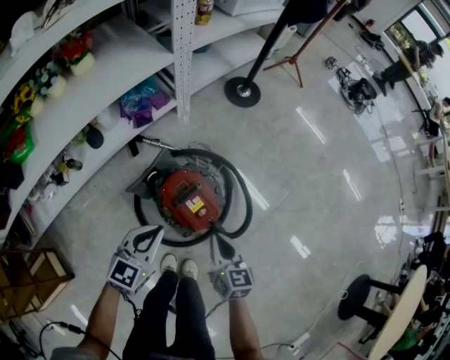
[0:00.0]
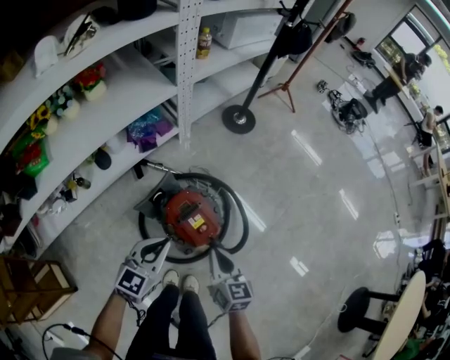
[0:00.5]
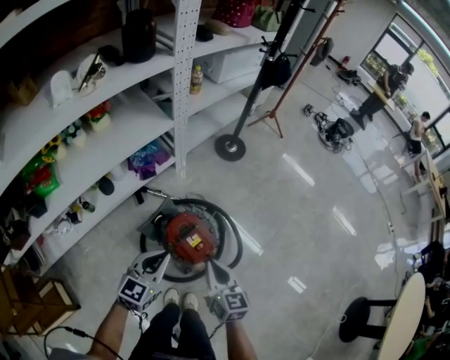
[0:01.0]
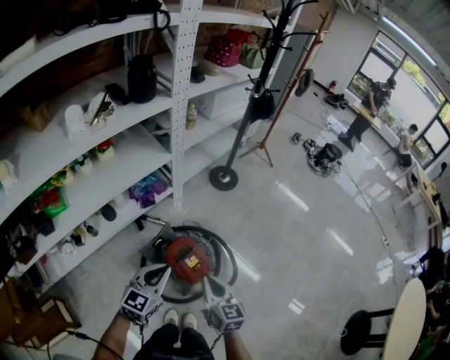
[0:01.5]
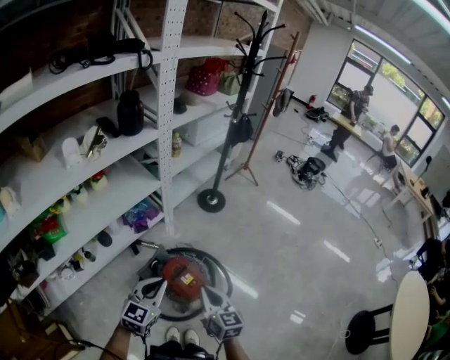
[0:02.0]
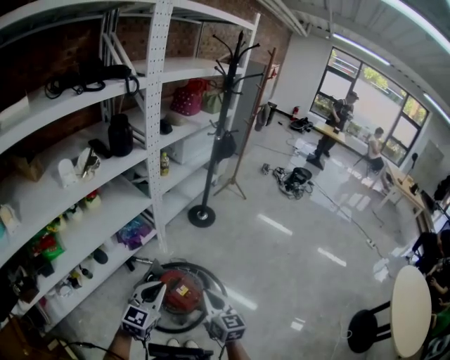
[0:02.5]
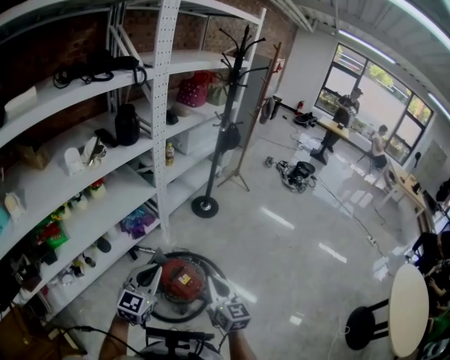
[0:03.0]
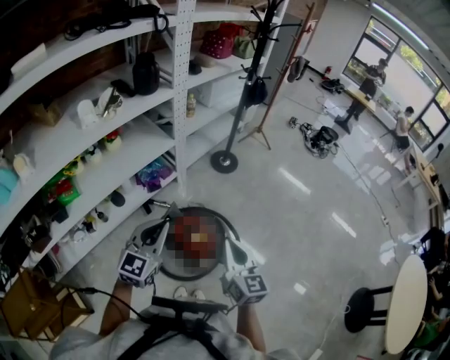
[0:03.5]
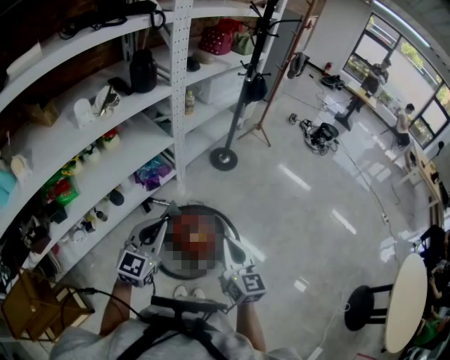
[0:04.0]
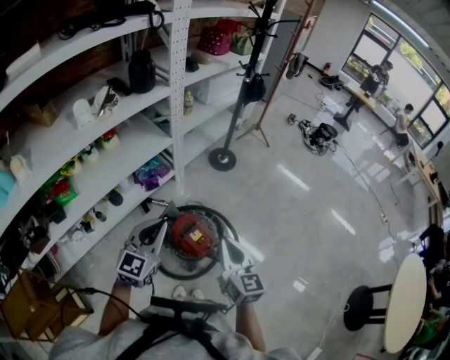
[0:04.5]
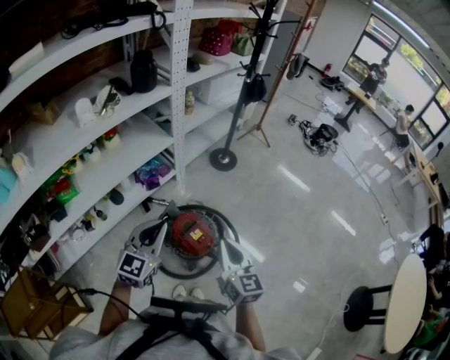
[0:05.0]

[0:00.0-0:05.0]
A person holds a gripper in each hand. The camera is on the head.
0:00.0 to 0:02.5: The two grippers go about 30 cm upward.
0:02.5 to 0:05.0: The left gripper shifts by roughly 5 cm.

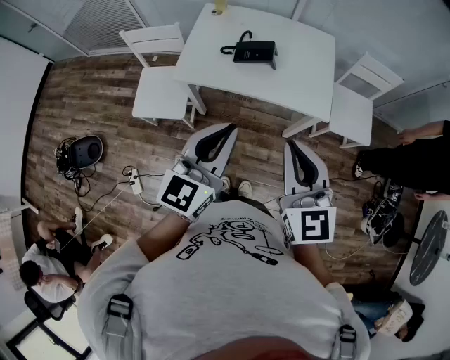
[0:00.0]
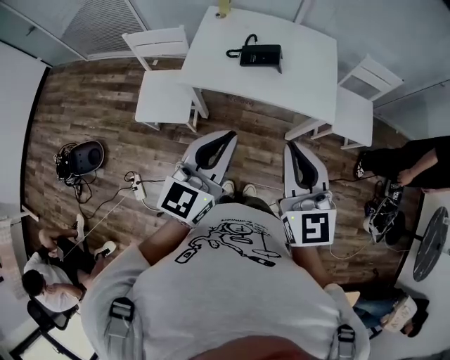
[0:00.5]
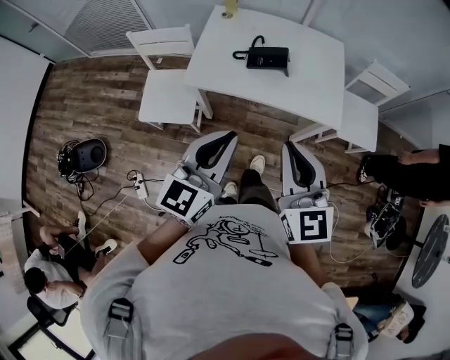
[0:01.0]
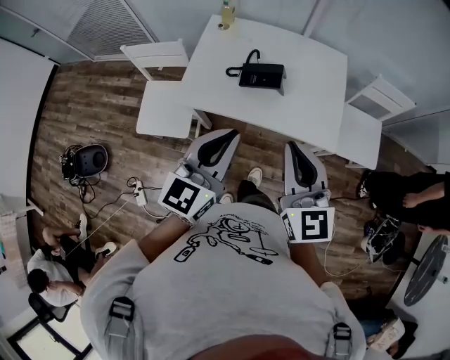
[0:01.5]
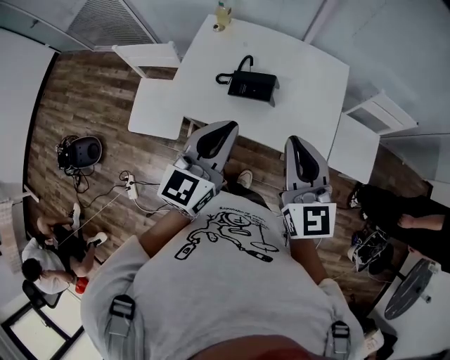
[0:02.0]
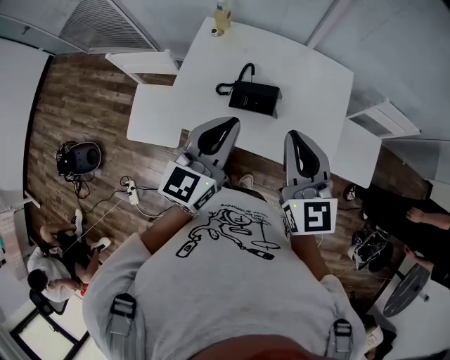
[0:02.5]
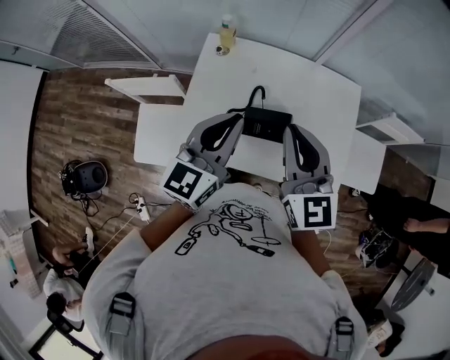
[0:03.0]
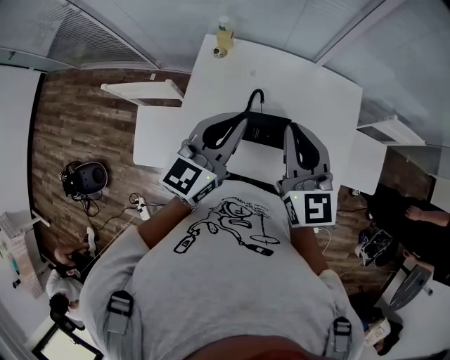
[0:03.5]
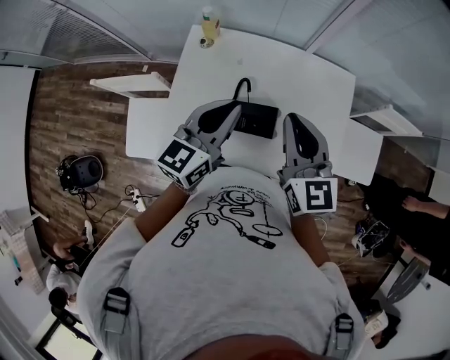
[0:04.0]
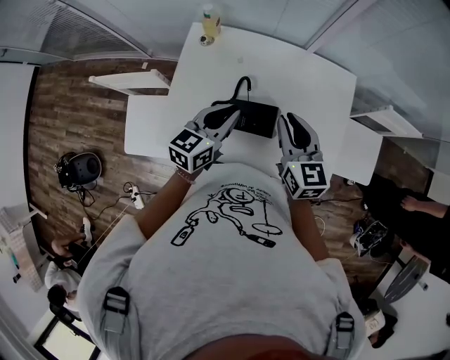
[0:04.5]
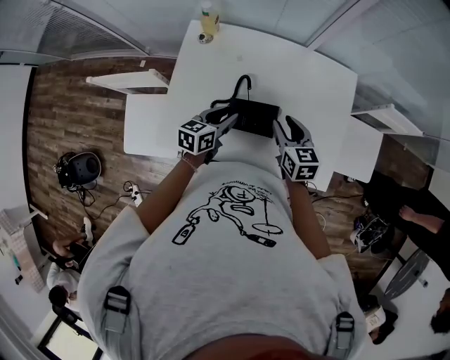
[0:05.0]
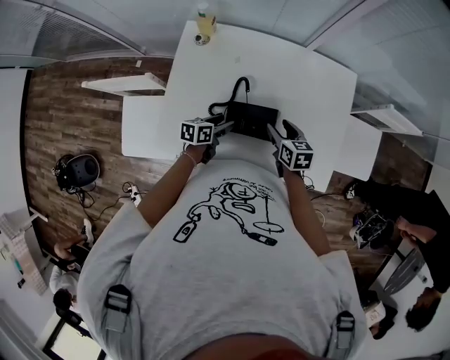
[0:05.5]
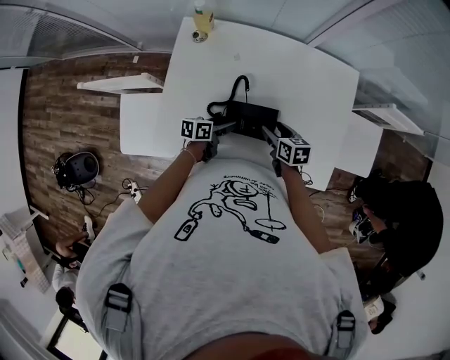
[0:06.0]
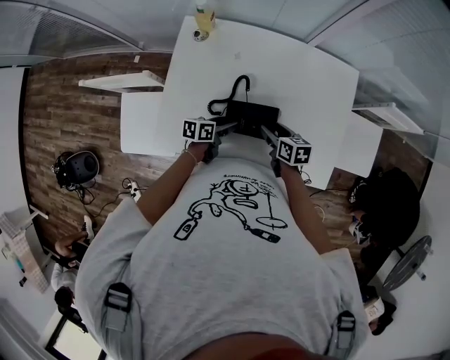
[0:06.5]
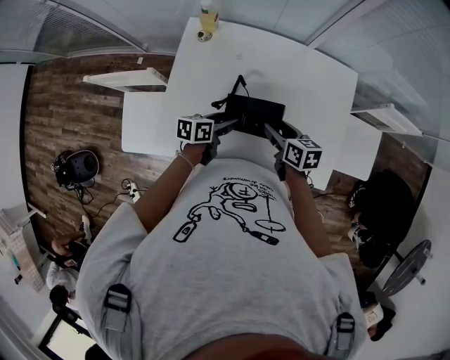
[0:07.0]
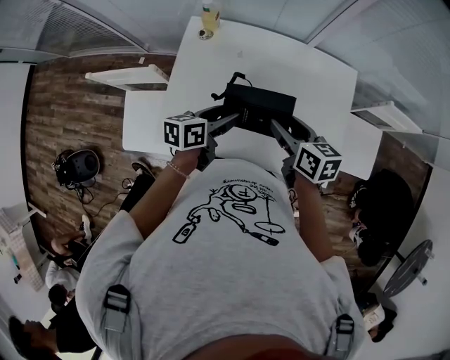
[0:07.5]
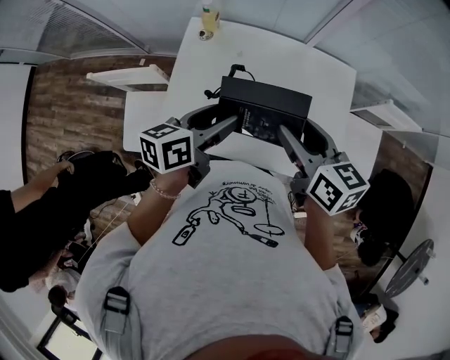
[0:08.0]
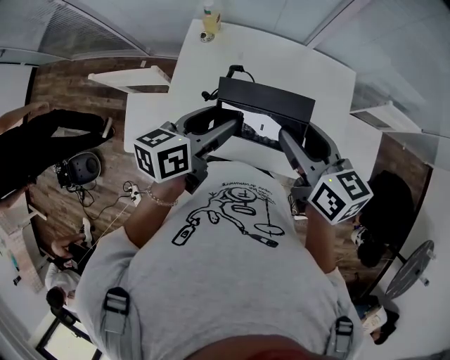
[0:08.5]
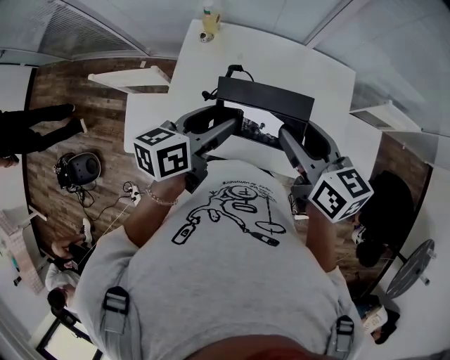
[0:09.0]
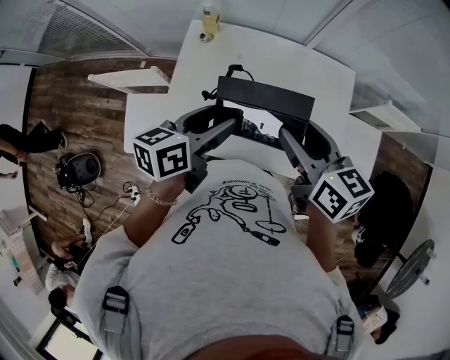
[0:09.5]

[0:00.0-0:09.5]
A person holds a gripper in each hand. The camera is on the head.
0:00.0 to 0:02.0: The grippers both shift forward by about 25 cm.
0:02.0 to 0:04.0: The two grippers go roughly 25 cm forward.
0:04.0 to 0:05.5: The two grippers go roughly 35 cm downward. The left gripper rotates roughly 50 degrees, and opens, while the right gripper tilts its fingers about 30 degrees downward, and opens.
0:05.5 to 0:07.5: Both grippers move upward, roughly 15 cm.
0:07.5 to 0:09.5: Both grippers move upward, about 15 cm.

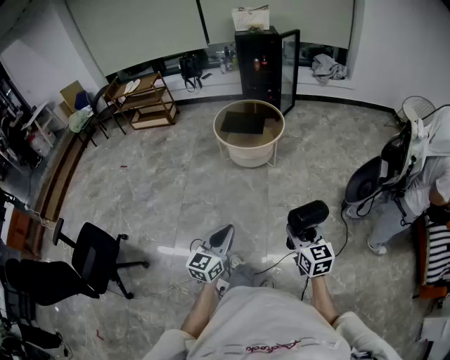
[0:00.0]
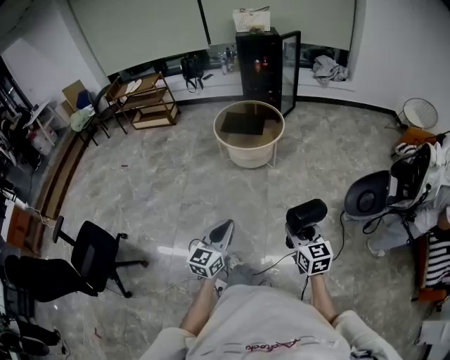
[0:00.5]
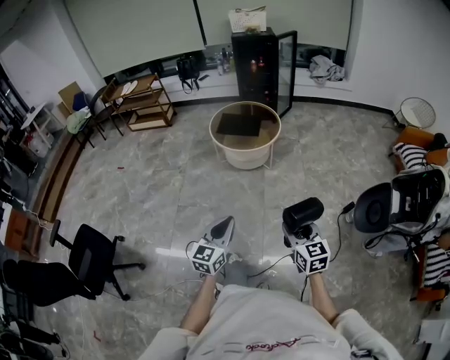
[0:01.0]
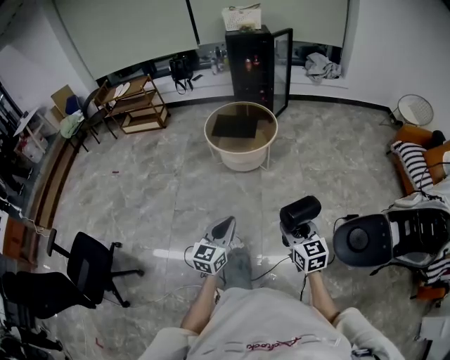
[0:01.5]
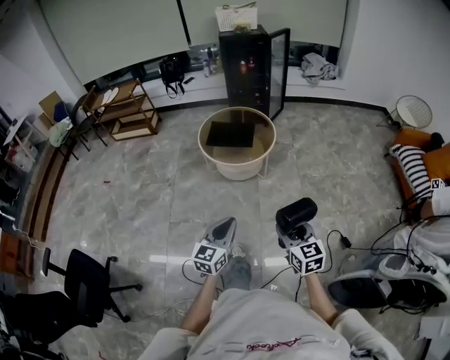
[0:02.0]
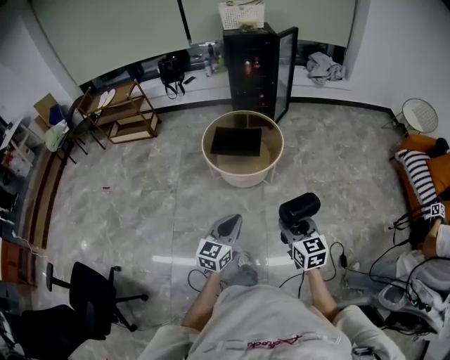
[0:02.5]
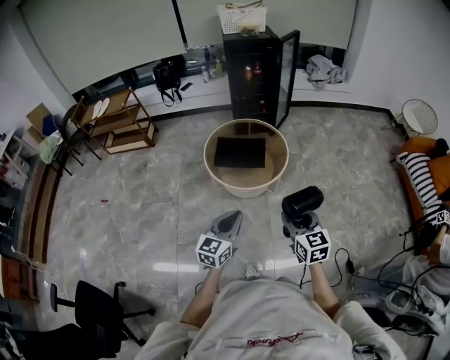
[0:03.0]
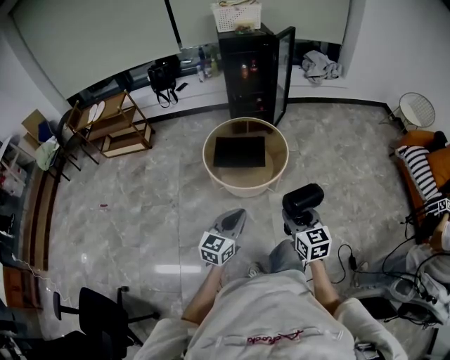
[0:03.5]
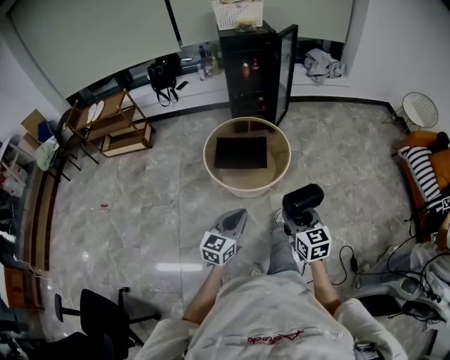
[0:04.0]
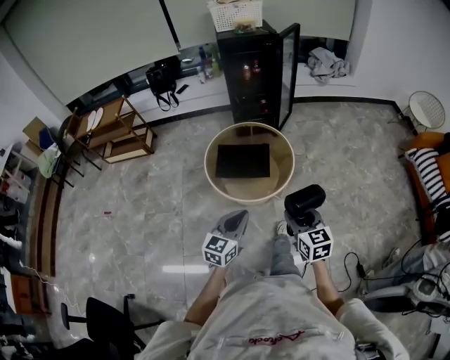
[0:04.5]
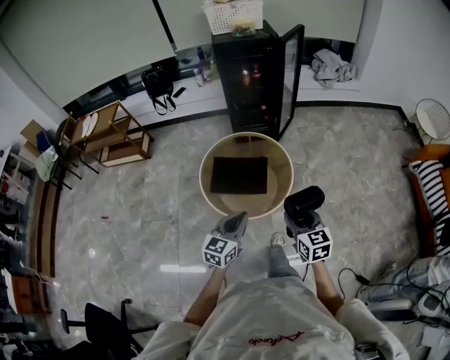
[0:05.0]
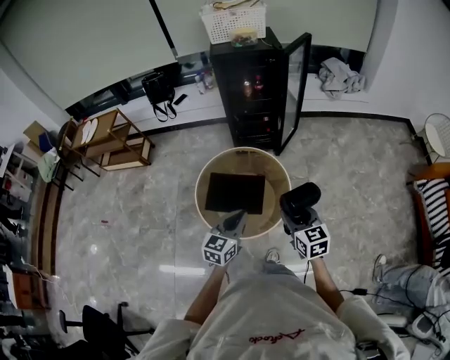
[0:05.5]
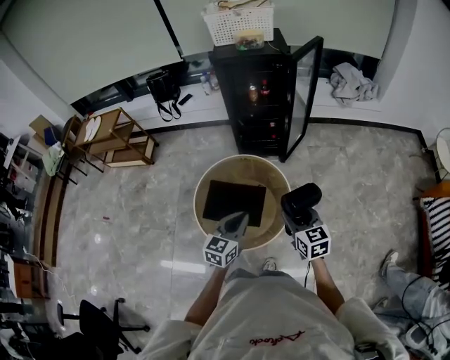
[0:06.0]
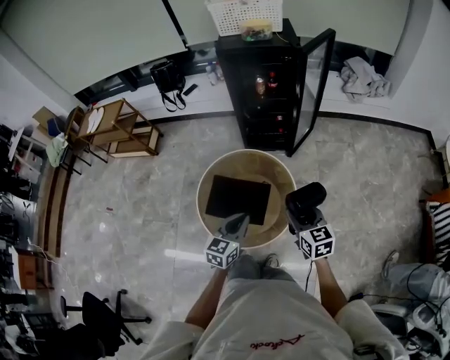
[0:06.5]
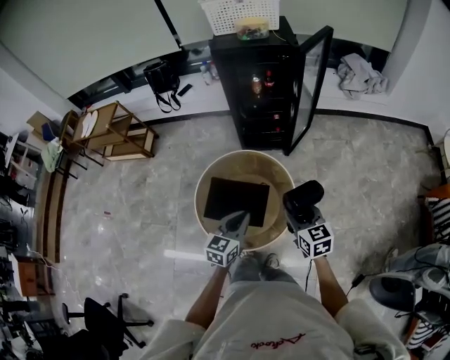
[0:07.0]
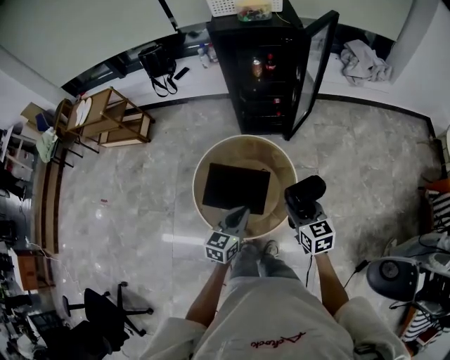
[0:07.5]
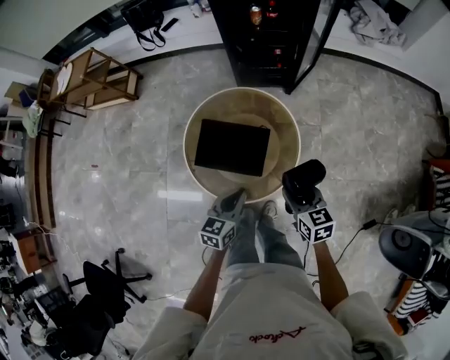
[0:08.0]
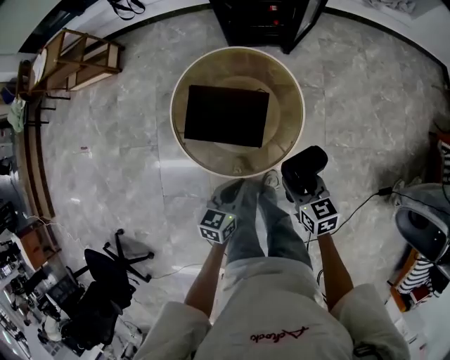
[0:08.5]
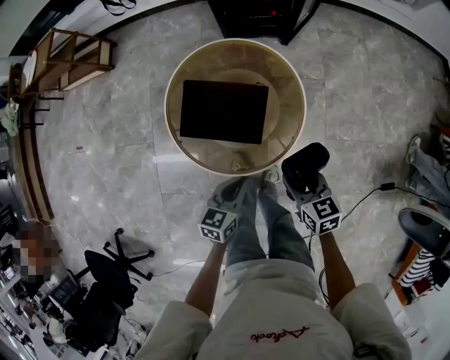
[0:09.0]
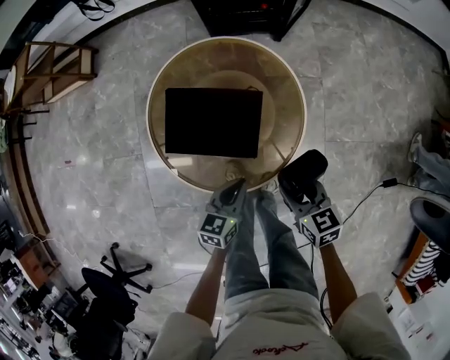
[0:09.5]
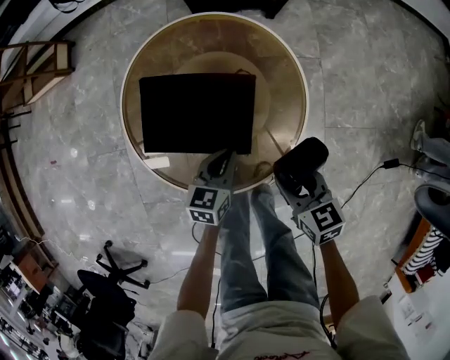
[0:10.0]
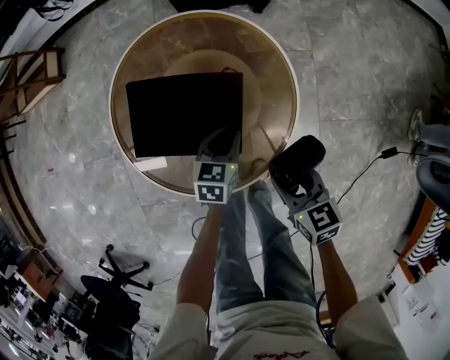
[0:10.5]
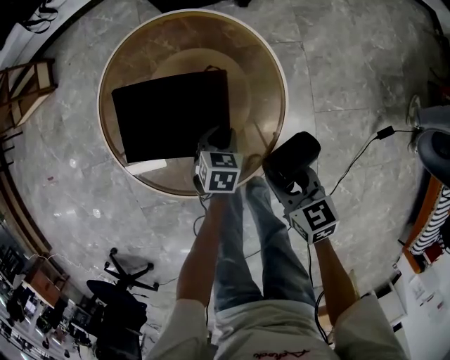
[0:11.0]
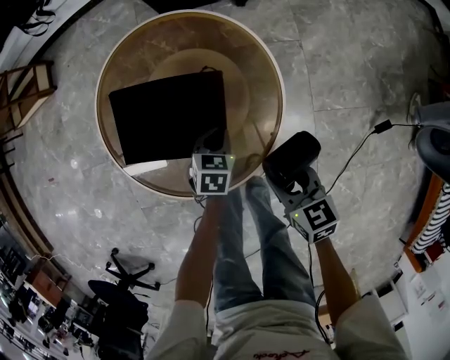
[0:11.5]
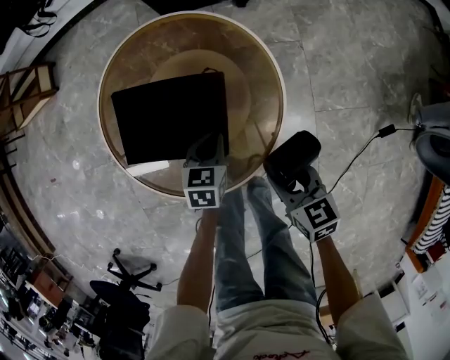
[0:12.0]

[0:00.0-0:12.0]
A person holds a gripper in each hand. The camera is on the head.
0:00.0 to 0:02.0: Both grippers travel together forward, approximately 20 cm.
0:02.0 to 0:04.0: Both grippers travel together forward and to the left, approximately 30 cm.
0:04.0 to 0:06.0: Both grippers are carried forward, roughly 40 cm.
0:06.0 to 0:08.0: The two grippers go roughly 10 cm downward.
0:08.0 to 0:10.0: Both grippers move downward, about 25 cm.

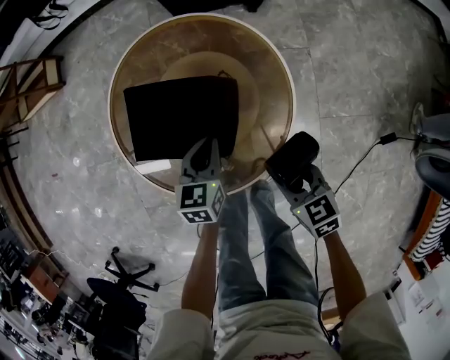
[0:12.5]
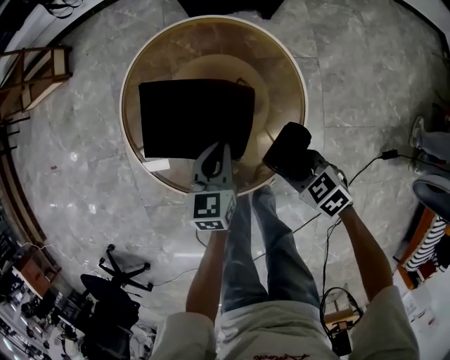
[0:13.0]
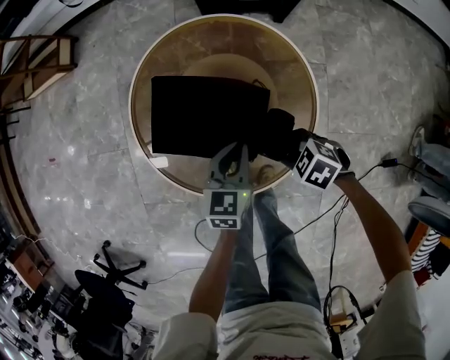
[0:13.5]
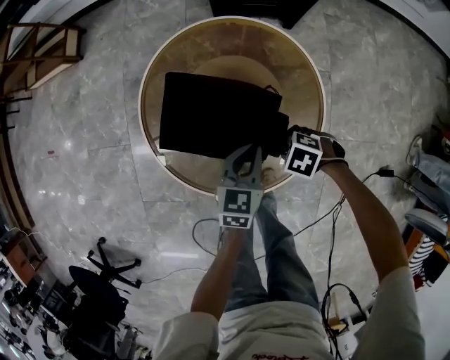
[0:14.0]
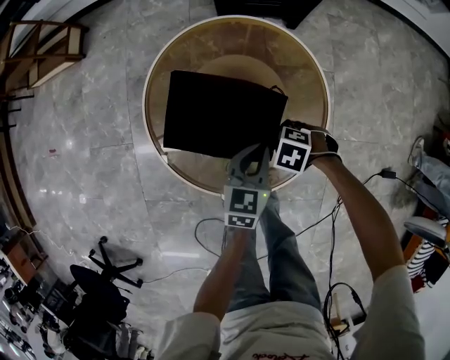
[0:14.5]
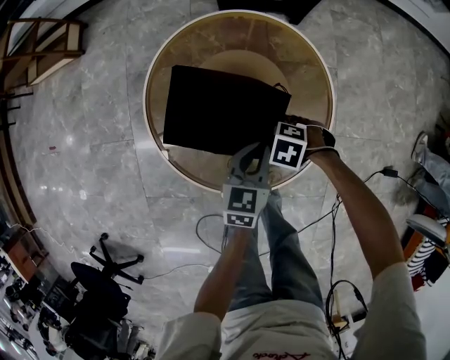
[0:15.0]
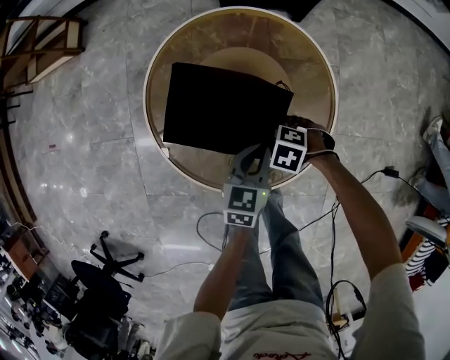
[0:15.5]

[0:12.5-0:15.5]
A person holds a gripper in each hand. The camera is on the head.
0:12.5 to 0:14.0: The right gripper travels downward by some 10 cm, and rotates about 60 degrees.
0:14.0 to 0:15.5: The right gripper moves roughly 5 cm.
